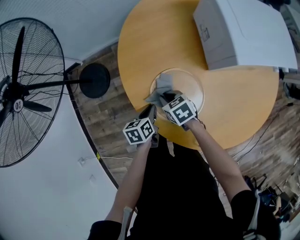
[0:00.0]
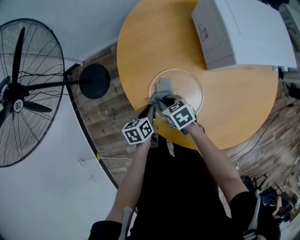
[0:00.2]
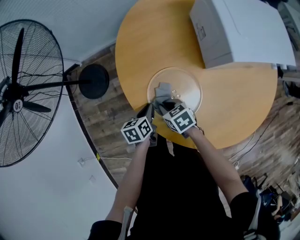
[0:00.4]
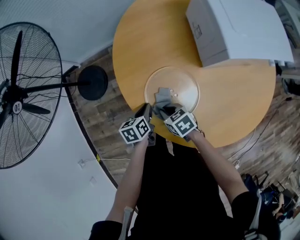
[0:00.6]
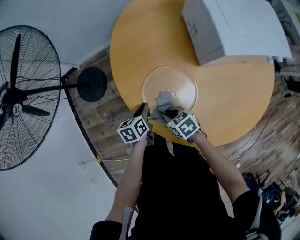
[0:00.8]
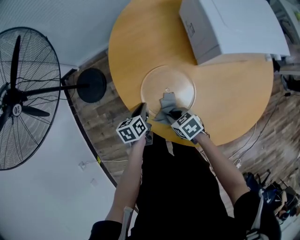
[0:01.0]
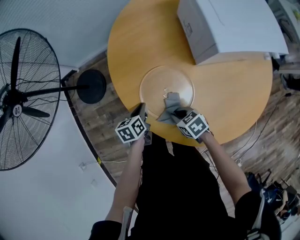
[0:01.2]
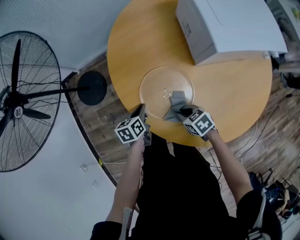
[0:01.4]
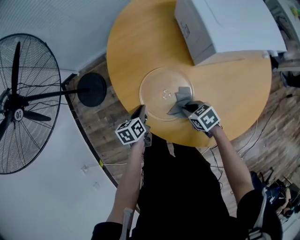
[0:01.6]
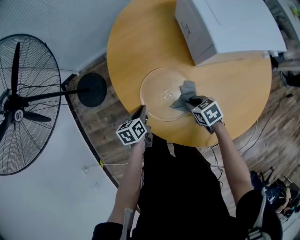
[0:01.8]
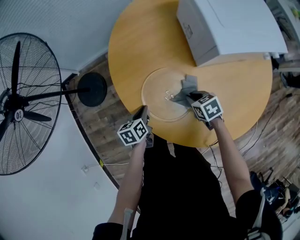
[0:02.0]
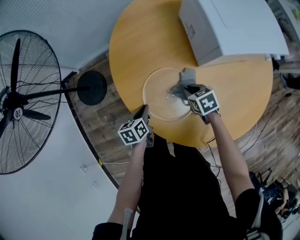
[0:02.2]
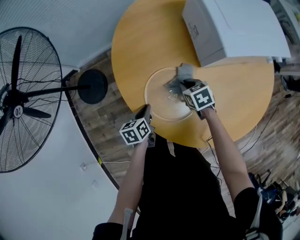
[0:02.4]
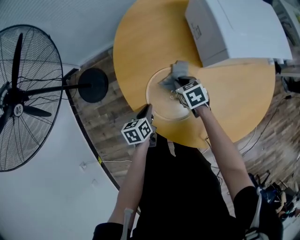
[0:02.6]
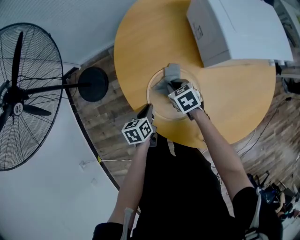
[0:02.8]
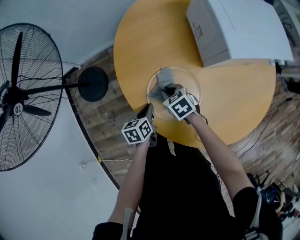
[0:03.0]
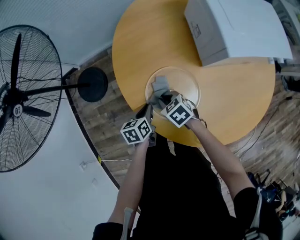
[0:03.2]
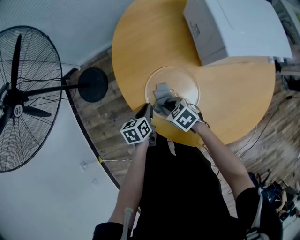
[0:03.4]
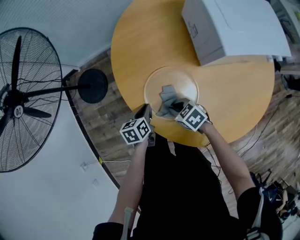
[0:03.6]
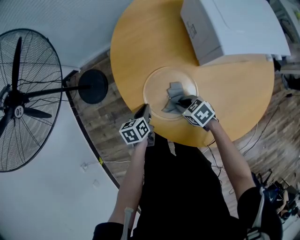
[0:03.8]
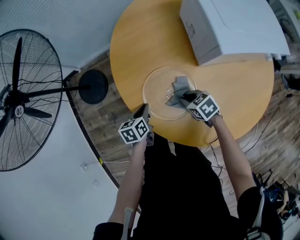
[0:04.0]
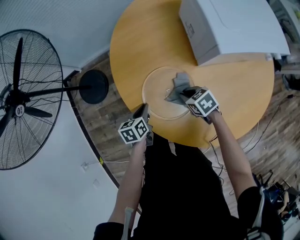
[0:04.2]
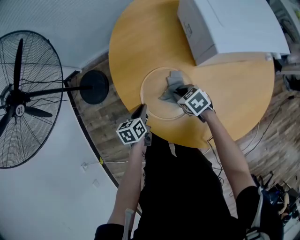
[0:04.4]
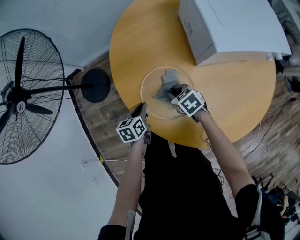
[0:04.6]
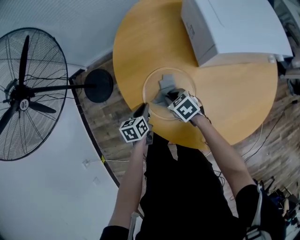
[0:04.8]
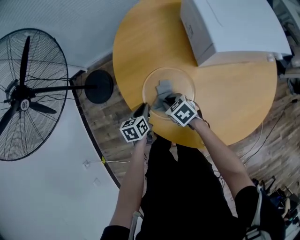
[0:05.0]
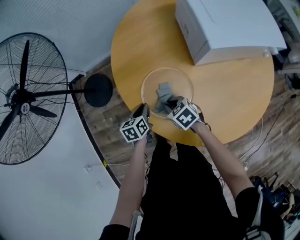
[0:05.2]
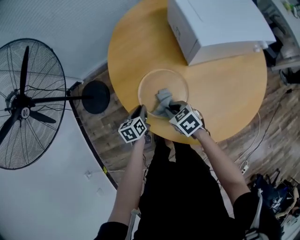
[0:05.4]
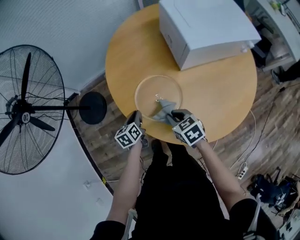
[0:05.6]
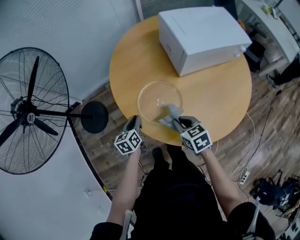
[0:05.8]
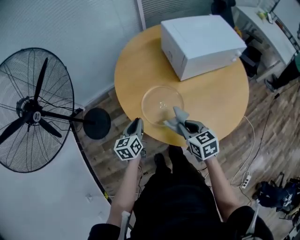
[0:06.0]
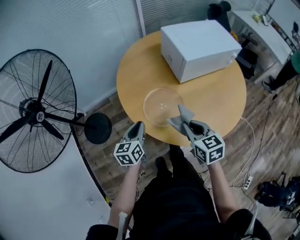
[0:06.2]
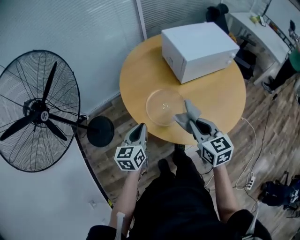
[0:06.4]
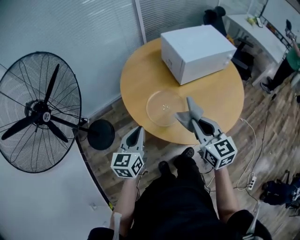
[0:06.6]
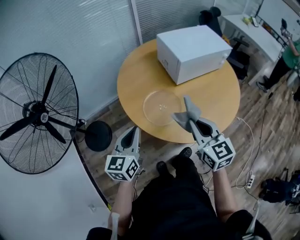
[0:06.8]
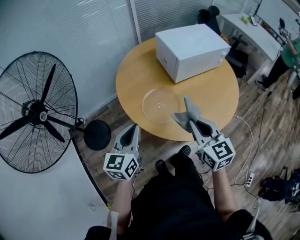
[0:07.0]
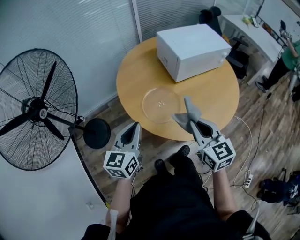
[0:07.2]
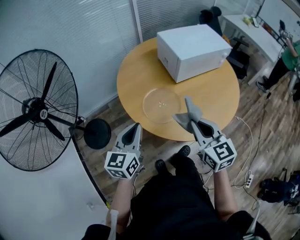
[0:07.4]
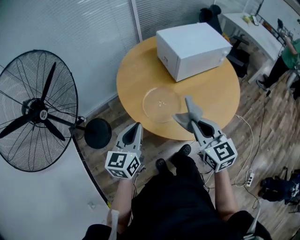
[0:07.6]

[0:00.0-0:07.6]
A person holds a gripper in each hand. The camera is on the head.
0:00.0 to 0:01.6: The right gripper moves backward and to the right, about 15 cm.
0:01.6 to 0:03.0: The right gripper shifts approximately 15 cm forward and to the left.
0:04.6 to 0:06.0: The left gripper is displaced upward by roughly 15 cm, and turns by about 20 degrees; the right gripper shifts some 25 cm upward and backward, and turns by about 30 degrees.
0:06.0 to 0:07.6: The two grippers go some 20 cm upward and backward. The left gripper rotates approximately 20 degrees. Meanwhile the right gripper turns by about 30 degrees.

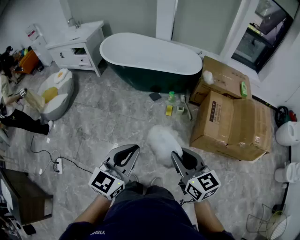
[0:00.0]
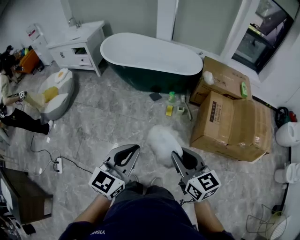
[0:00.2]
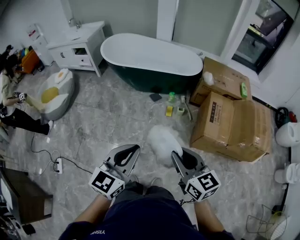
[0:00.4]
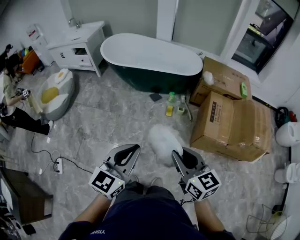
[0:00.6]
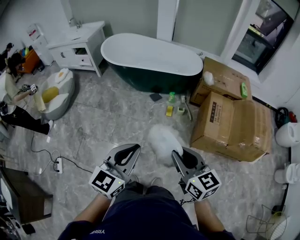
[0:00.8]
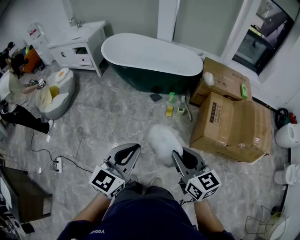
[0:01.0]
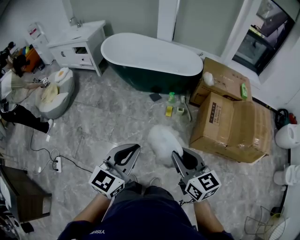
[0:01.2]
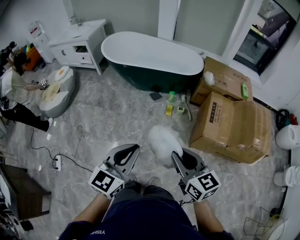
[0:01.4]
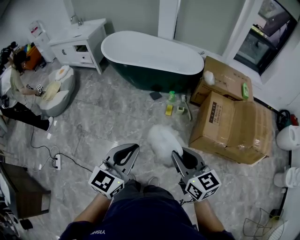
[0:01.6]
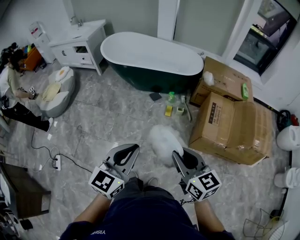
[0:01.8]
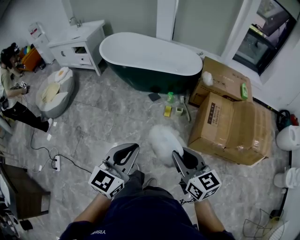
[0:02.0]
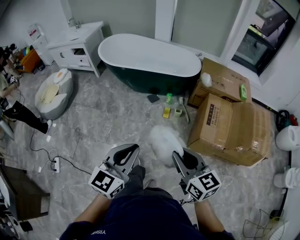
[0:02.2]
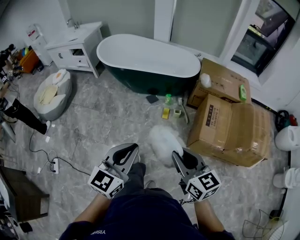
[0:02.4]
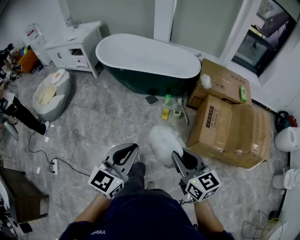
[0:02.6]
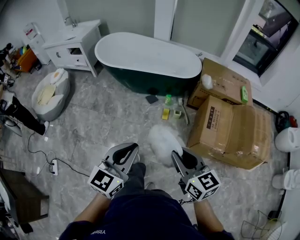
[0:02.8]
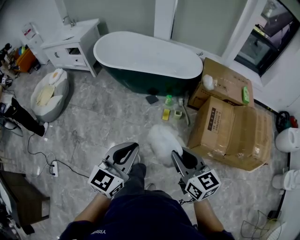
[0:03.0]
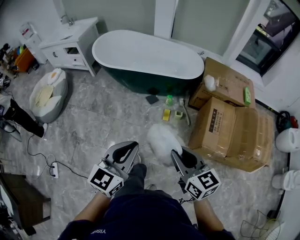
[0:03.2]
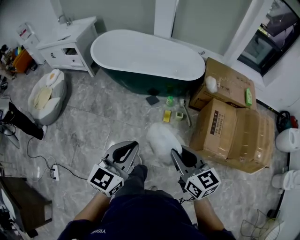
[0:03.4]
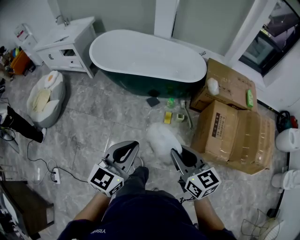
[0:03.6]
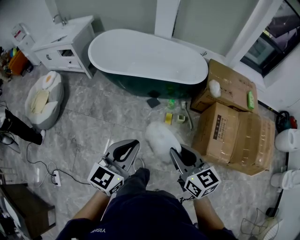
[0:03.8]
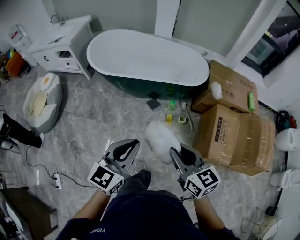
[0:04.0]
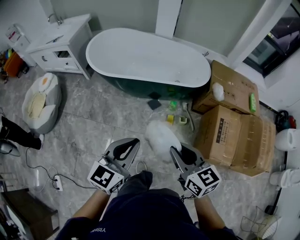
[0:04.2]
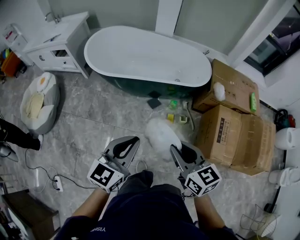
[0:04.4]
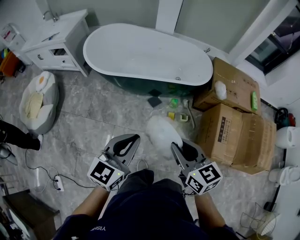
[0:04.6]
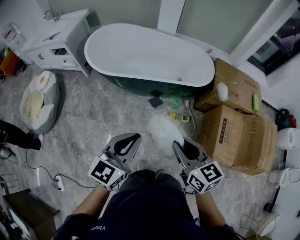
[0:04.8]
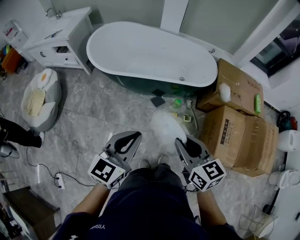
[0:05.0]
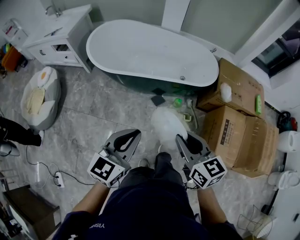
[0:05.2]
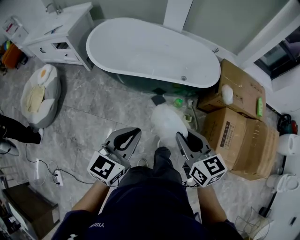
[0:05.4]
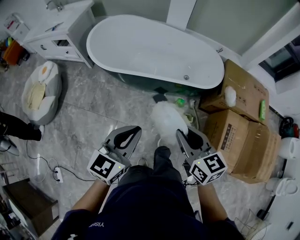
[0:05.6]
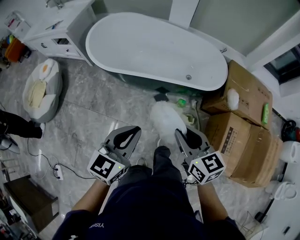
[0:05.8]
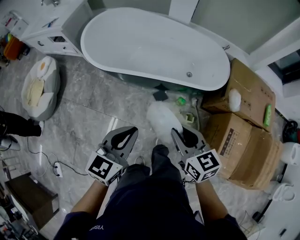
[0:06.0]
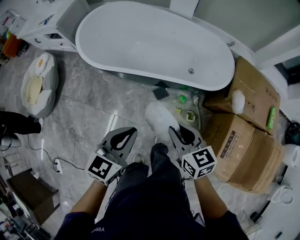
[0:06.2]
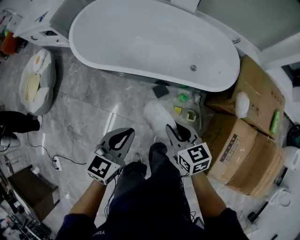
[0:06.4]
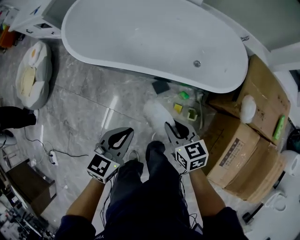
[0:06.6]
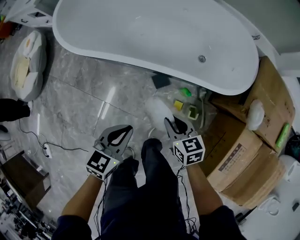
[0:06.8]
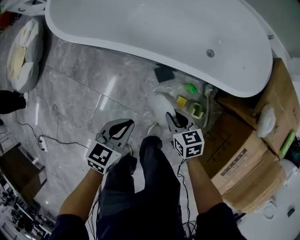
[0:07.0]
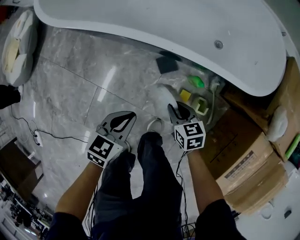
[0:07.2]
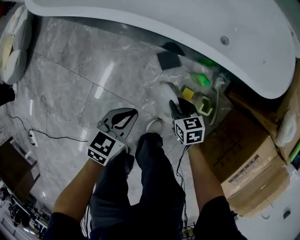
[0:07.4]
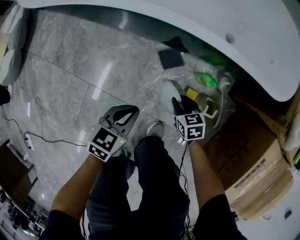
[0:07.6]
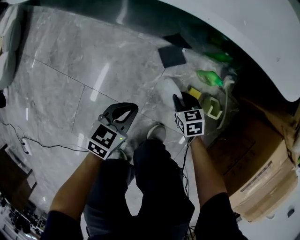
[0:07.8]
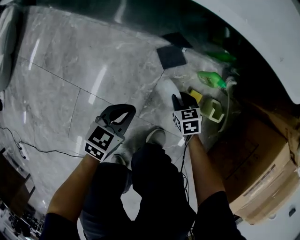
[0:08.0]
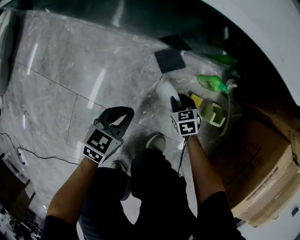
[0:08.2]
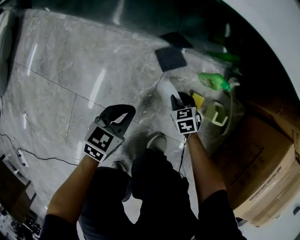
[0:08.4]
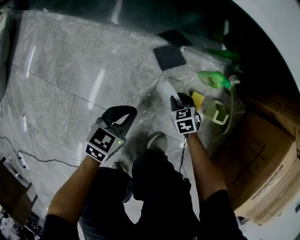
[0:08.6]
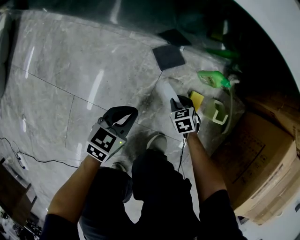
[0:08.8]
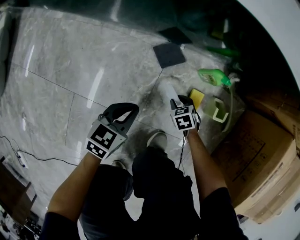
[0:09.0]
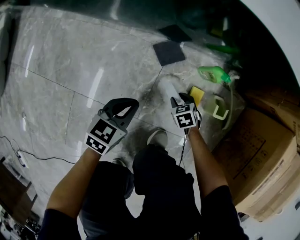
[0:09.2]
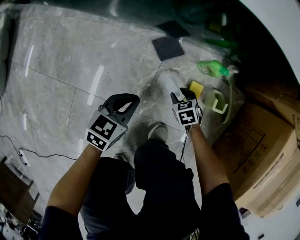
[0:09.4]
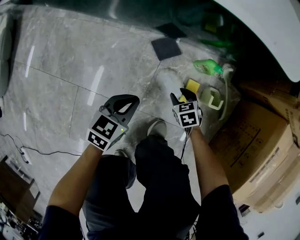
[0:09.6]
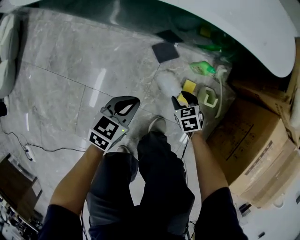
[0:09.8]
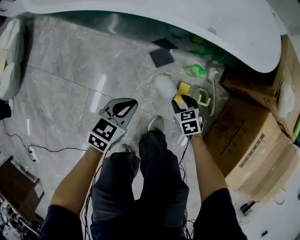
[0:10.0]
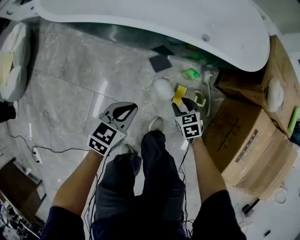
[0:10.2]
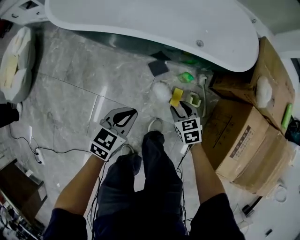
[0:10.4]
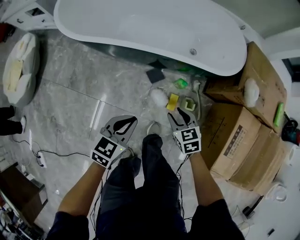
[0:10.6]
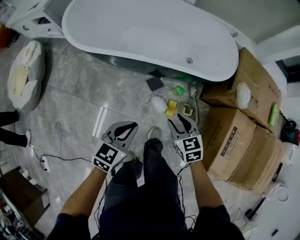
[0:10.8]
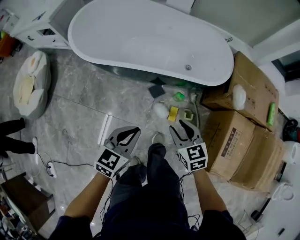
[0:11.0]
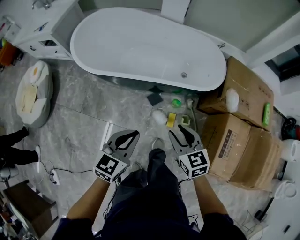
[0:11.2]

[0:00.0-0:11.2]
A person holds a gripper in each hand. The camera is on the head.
0:00.0 to 0:01.6: The grippers make only small movements.
0:01.6 to 0:03.2: The two grippers go approximately 15 cm forward.
0:03.2 to 0:04.8: The grippers both shift forward and to the left by about 25 cm.
0:04.8 to 0:06.4: The grippers both shift forward and downward by about 30 cm.
0:06.4 to 0:08.0: Both grippers travel together downward, some 60 cm. The right gripper turns by roughly 30 degrees.
0:08.0 to 0:09.6: The right gripper moves some 10 cm downward and comes back, and opens.
0:09.6 to 0:11.2: Both grippers travel together upward, approximately 60 cm. The right gripper tips its fingers upward by approximately 30 degrees.

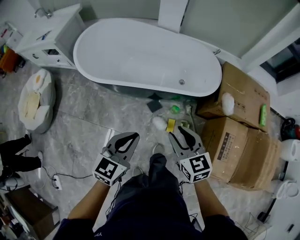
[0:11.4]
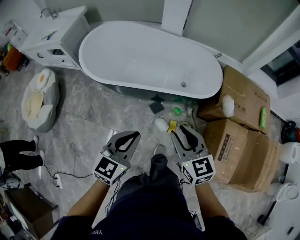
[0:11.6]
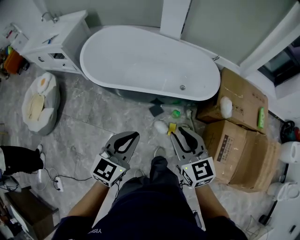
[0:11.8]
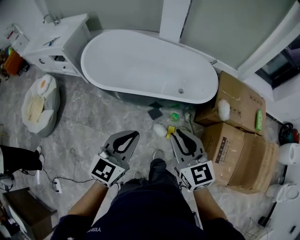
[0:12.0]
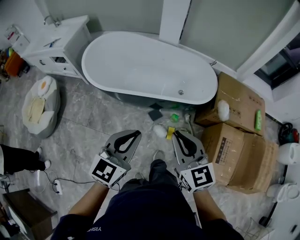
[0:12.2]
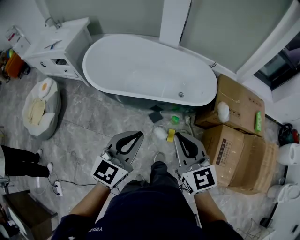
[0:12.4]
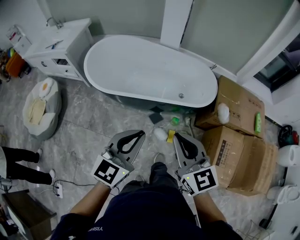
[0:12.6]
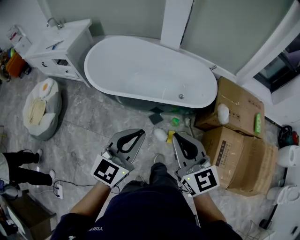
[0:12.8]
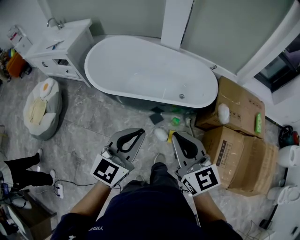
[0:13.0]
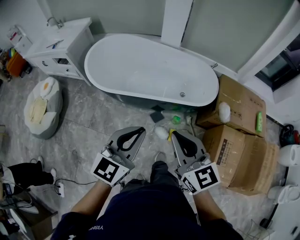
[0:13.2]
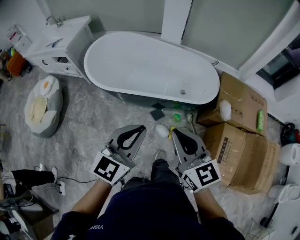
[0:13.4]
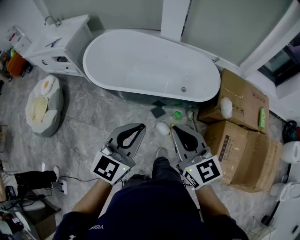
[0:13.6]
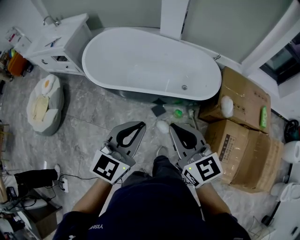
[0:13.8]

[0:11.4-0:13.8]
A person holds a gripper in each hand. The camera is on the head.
0:11.4 to 0:12.6: Both grippers travel together upward, approximately 15 cm. The right gripper closes.
0:12.6 to 0:13.8: The grippers make only small movements.

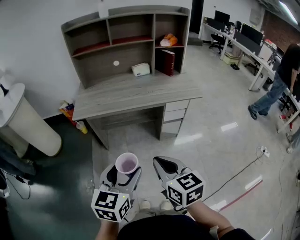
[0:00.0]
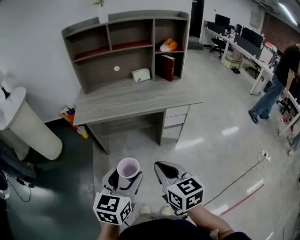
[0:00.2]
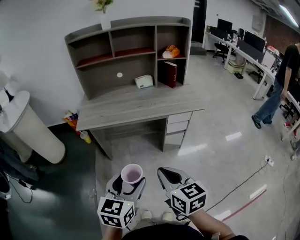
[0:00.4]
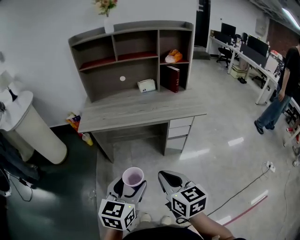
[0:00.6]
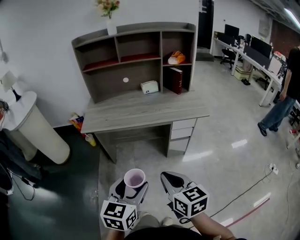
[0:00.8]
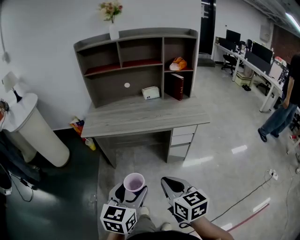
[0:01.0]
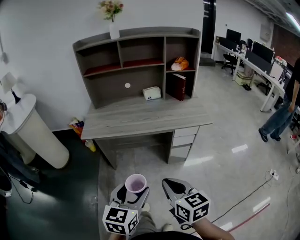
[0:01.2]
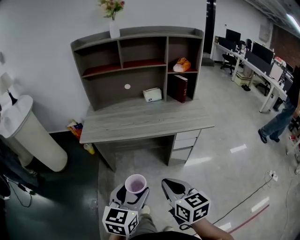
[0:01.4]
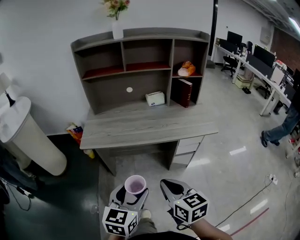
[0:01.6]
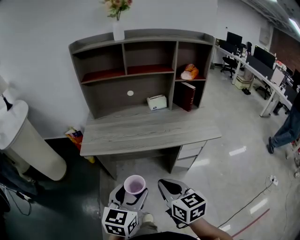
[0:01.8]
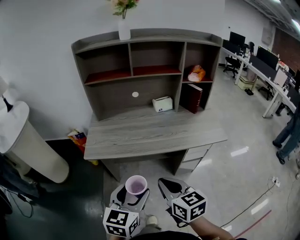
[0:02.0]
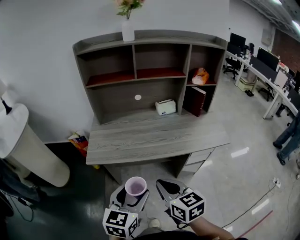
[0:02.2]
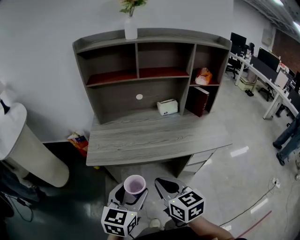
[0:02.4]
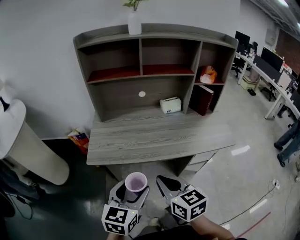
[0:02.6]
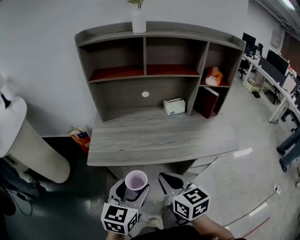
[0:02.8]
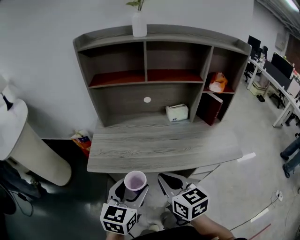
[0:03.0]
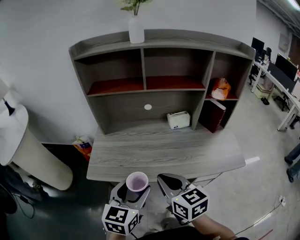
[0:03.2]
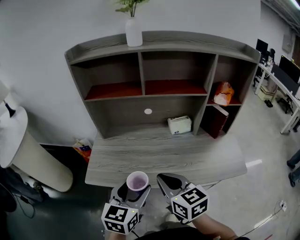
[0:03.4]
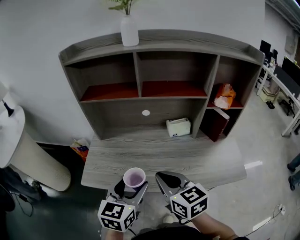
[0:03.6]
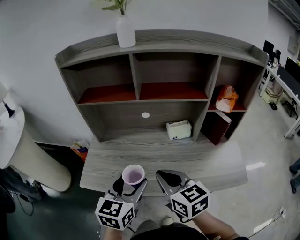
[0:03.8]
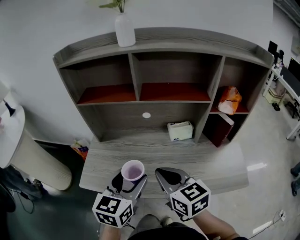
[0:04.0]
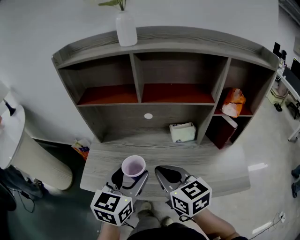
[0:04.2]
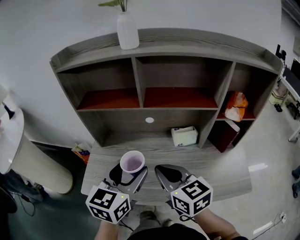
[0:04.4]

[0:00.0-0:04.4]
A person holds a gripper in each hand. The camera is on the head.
0:00.0 to 0:01.4: Both grippers move forward, approximately 5 cm.
0:01.4 to 0:03.0: The two grippers go roughly 25 cm forward.
0:03.0 to 0:04.4: Both grippers move forward, some 20 cm.
